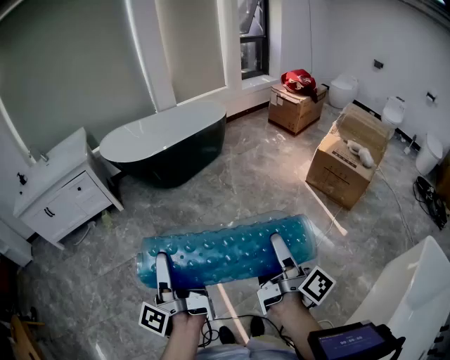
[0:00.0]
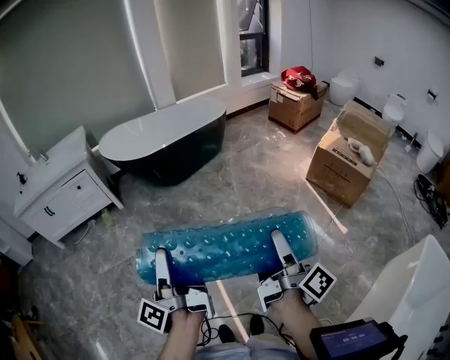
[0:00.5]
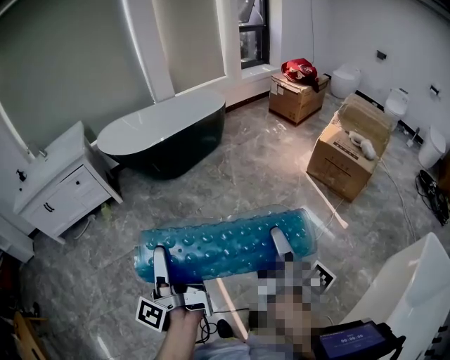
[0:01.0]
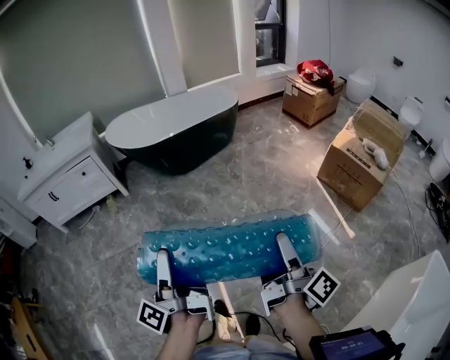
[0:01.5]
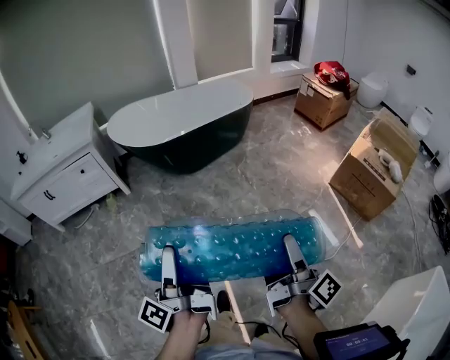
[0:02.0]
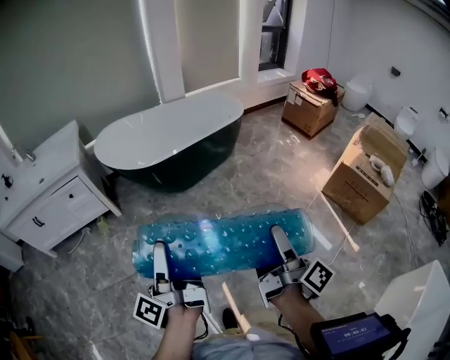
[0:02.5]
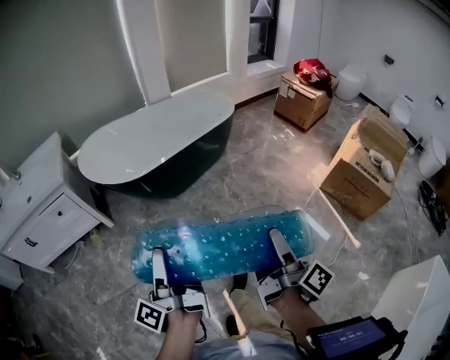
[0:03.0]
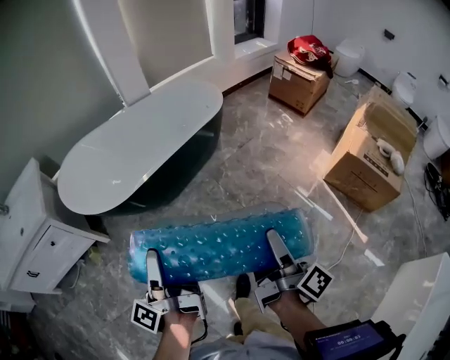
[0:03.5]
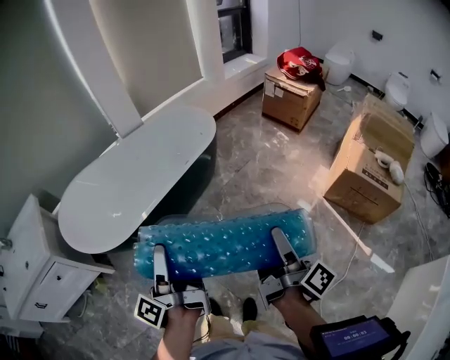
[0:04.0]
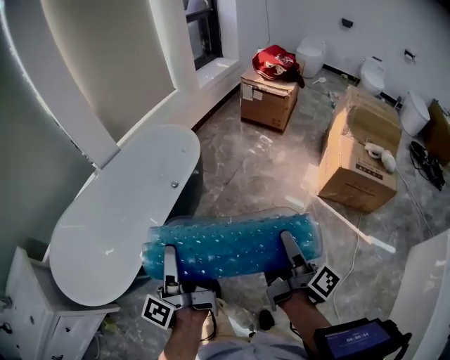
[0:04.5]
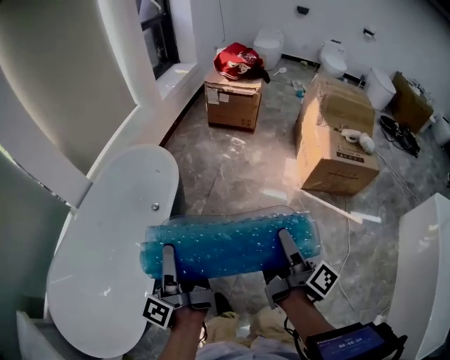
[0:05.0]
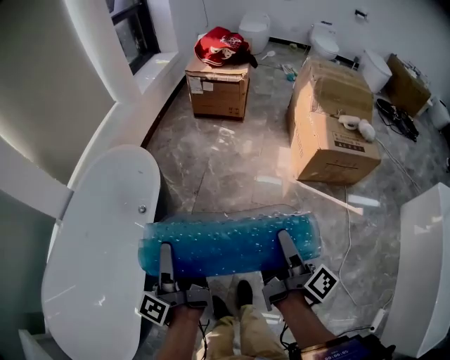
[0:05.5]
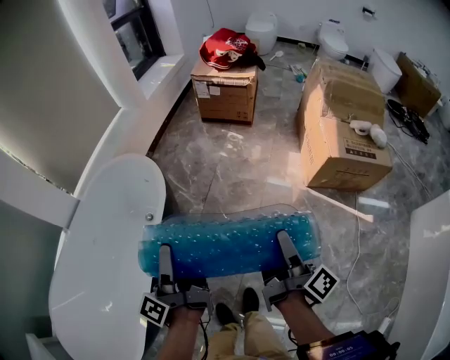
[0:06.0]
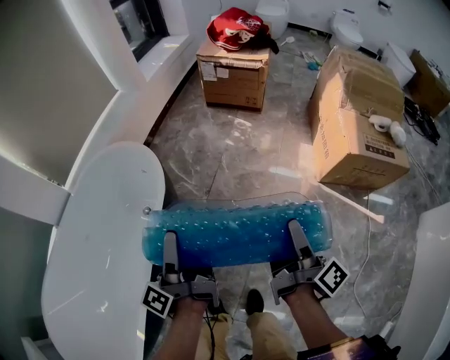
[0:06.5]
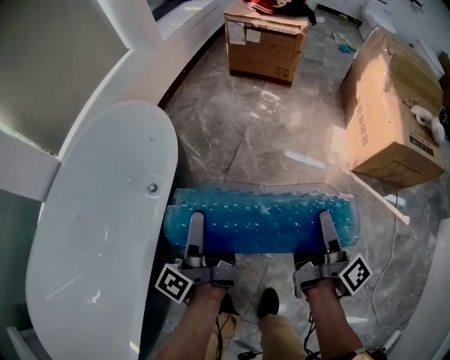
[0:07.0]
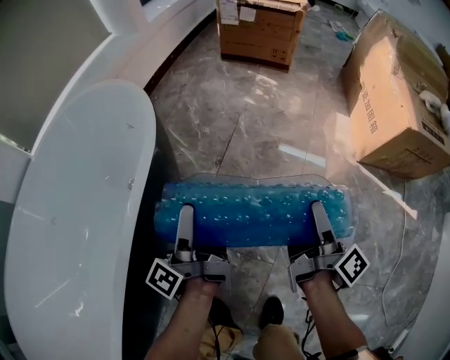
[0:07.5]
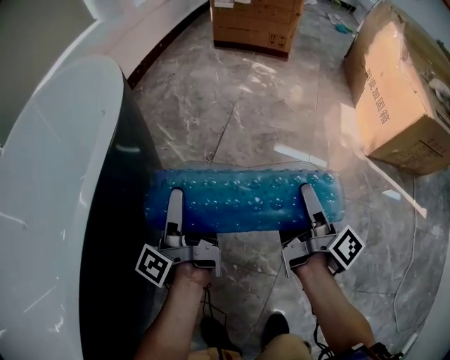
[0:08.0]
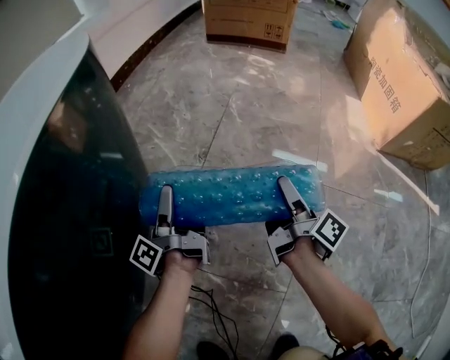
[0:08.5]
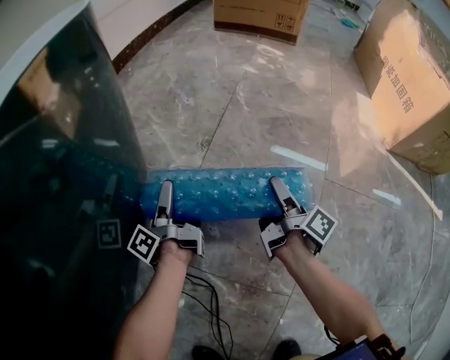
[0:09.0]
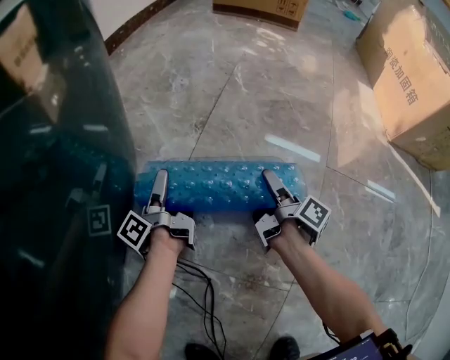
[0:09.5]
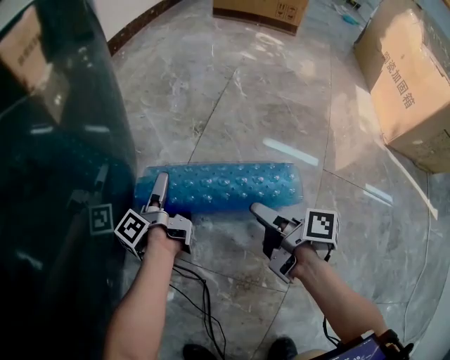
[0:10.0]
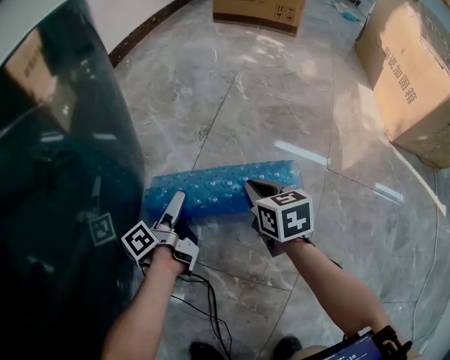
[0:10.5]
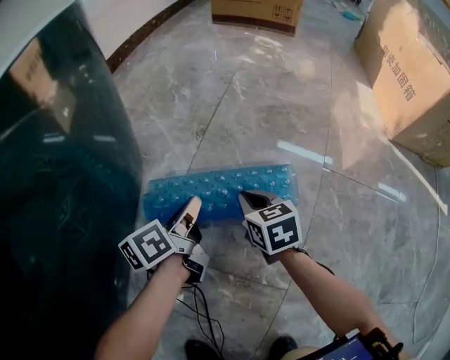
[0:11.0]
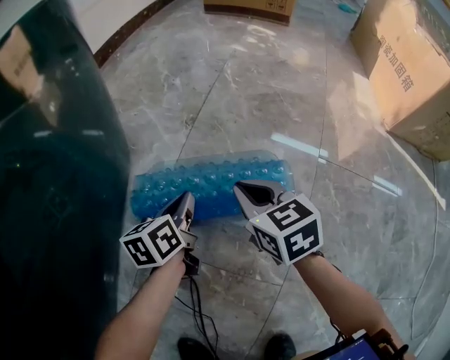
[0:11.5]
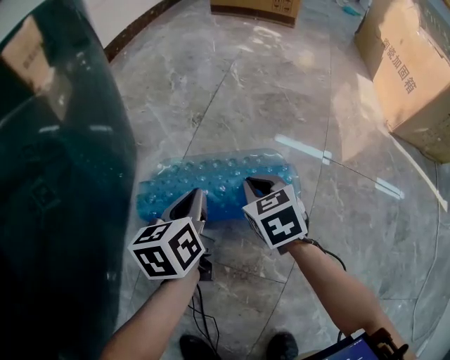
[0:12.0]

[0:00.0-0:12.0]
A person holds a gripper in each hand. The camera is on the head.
0:00.0 to 0:02.0: Both grippers move forward, about 20 cm.
0:02.0 to 0:04.0: Both grippers are carried forward, roughly 50 cm.
0:04.0 to 0:06.0: The left gripper shifts by approximately 40 cm, and swivels approximately 30 degrees. The right gripper moves roughly 30 cm, and swivels about 30 degrees.
0:06.0 to 0:08.0: Both grippers move downward and forward, about 60 cm.
0:08.0 to 0:10.0: Both grippers travel together downward, about 30 cm. The left gripper changes its angle by about 20 degrees. Meanwhile the right gripper turns by about 40 degrees.
0:10.0 to 0:12.0: The right gripper rotates around the line of its fingers by about 70 degrees, counterclockwise from behind, and closes its fingers. Meanwhile the left gripper shifts some 15 cm to the right, backward and upward, twists about 60 degrees clockwise, seen from behind, and closes its fingers.

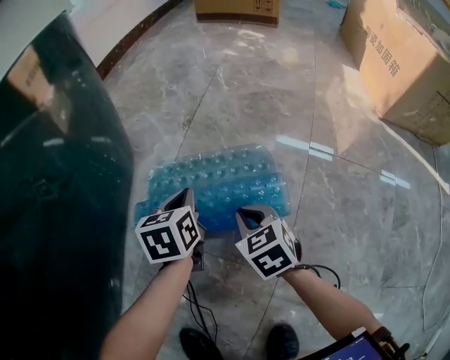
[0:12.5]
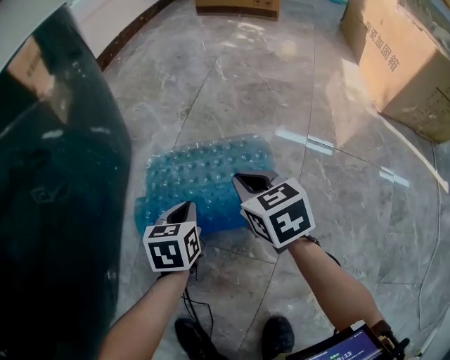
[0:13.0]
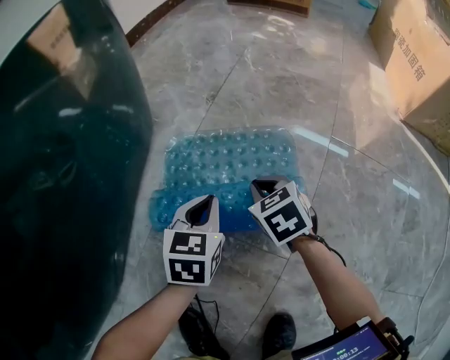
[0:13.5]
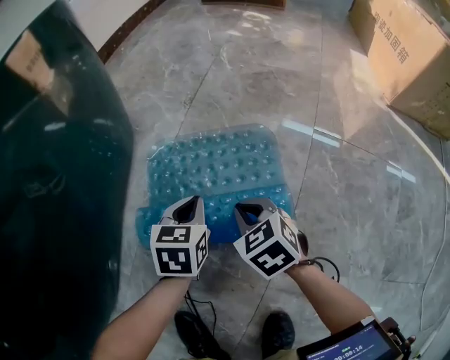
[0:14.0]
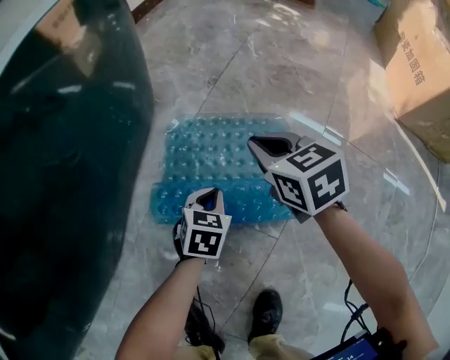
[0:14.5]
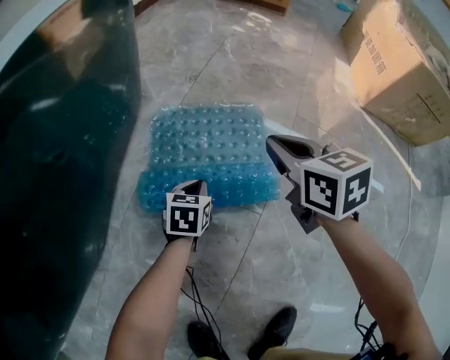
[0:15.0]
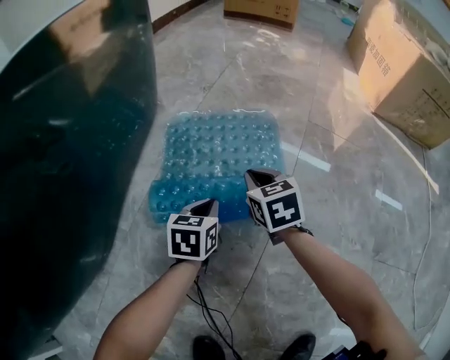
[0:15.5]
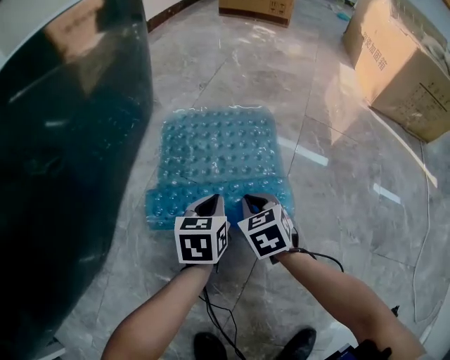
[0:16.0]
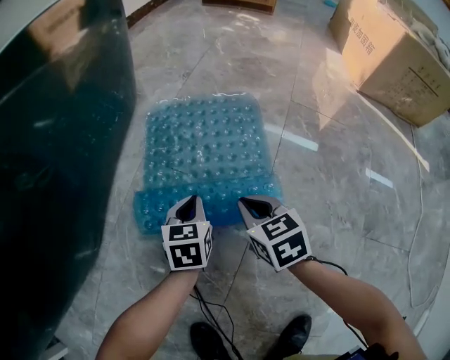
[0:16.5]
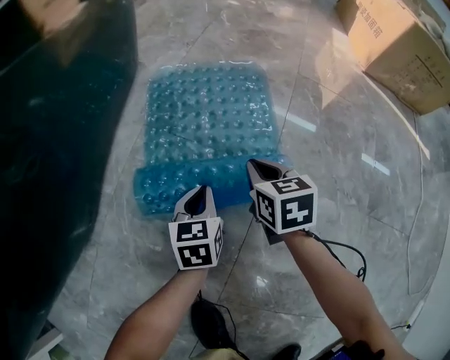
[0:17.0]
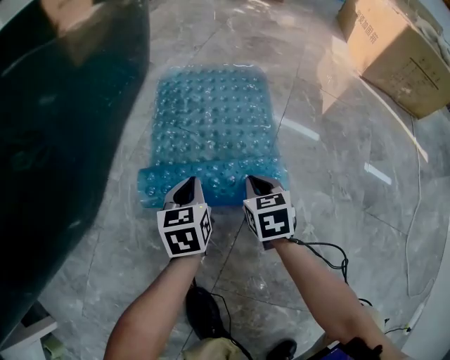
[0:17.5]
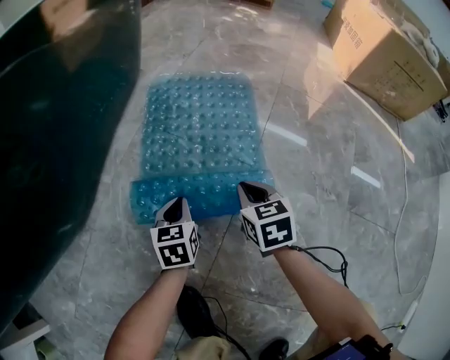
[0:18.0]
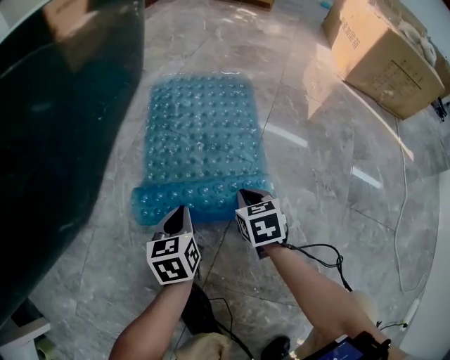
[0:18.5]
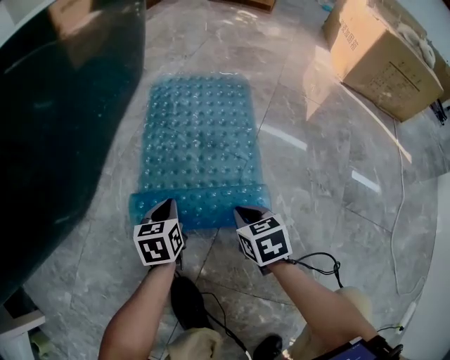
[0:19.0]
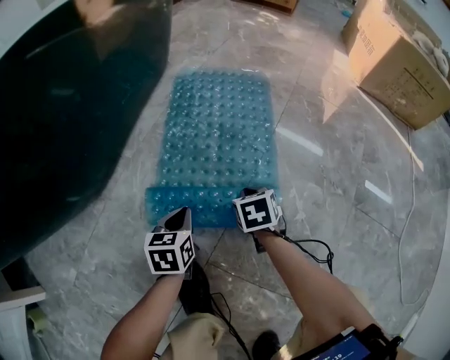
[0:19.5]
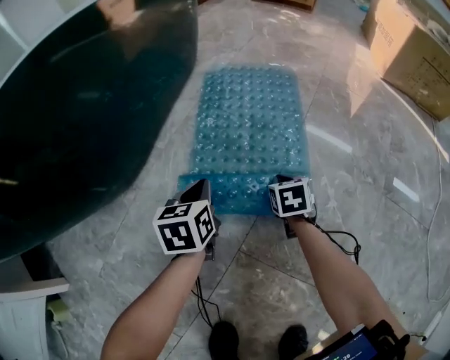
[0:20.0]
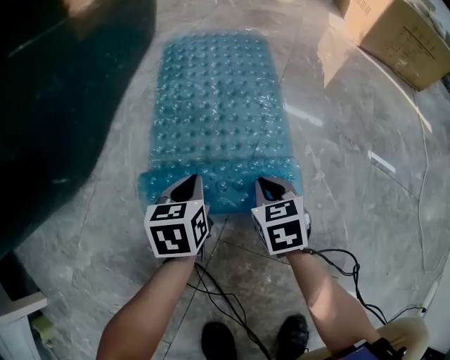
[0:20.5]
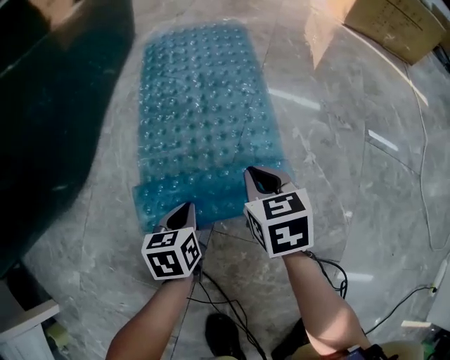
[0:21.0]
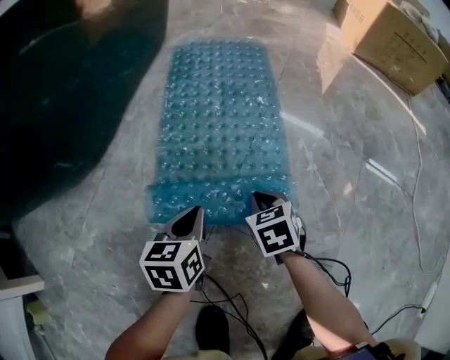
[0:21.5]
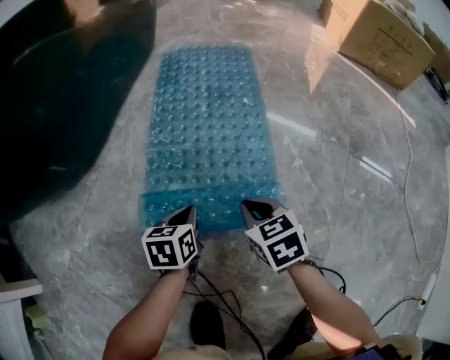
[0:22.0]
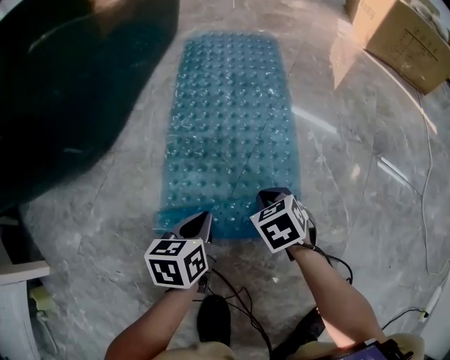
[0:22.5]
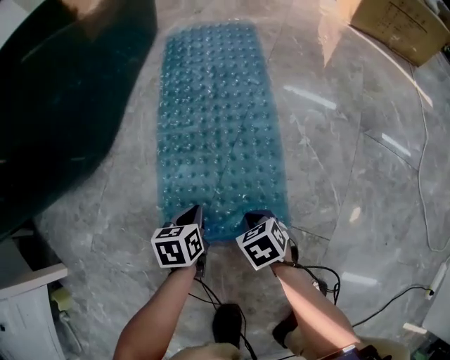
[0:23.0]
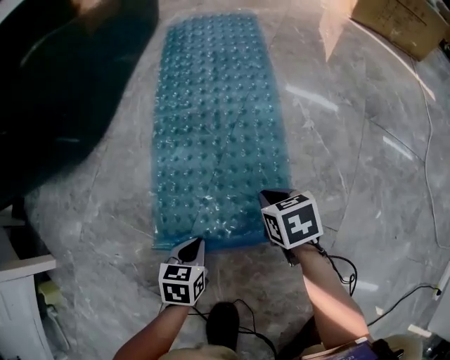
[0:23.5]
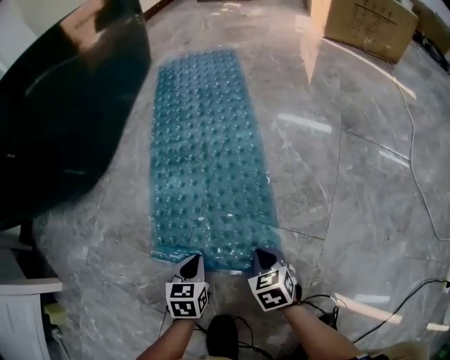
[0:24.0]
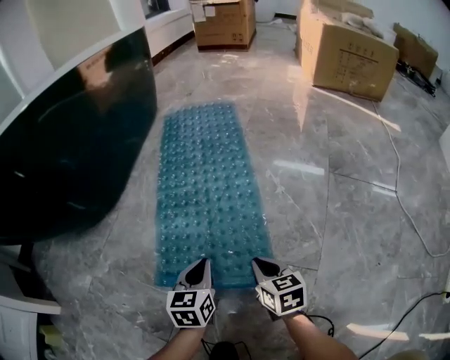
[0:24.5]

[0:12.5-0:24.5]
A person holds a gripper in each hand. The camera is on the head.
0:12.5 to 0:14.5: The left gripper heads backward, covering about 10 cm, and rotates about 20 degrees. Meanwhile the right gripper swings up and down, some 15 cm each way, with 2 reversals.
0:14.5 to 0:16.5: The right gripper shifts about 25 cm backward; the left gripper shifts approximately 15 cm backward.
0:16.5 to 0:18.5: The right gripper shifts some 10 cm backward, while the left gripper shifts approximately 15 cm backward.
0:18.5 to 0:20.5: The left gripper travels backward by roughly 5 cm, and goes upward and returns, roughly 5 cm each way. Meanwhile the right gripper is displaced backward by approximately 10 cm.
0:20.5 to 0:22.5: The right gripper shifts roughly 10 cm backward, while the left gripper goes some 15 cm backward.
0:22.5 to 0:24.5: The right gripper goes roughly 15 cm backward, and swivels some 40 degrees. The left gripper heads backward, covering approximately 10 cm.

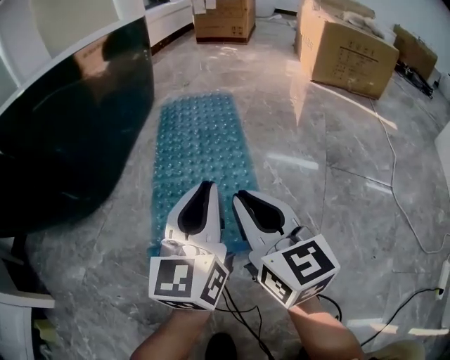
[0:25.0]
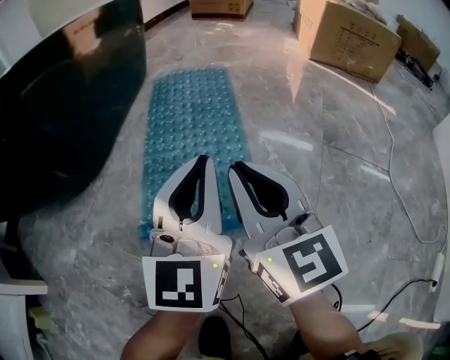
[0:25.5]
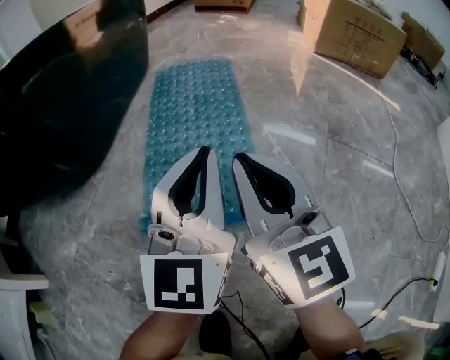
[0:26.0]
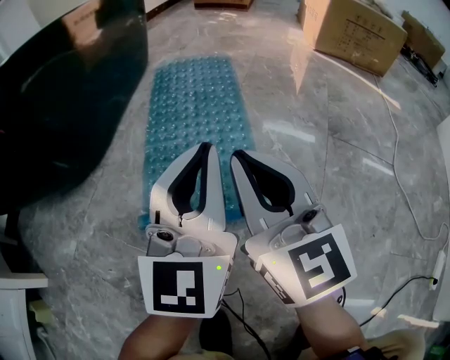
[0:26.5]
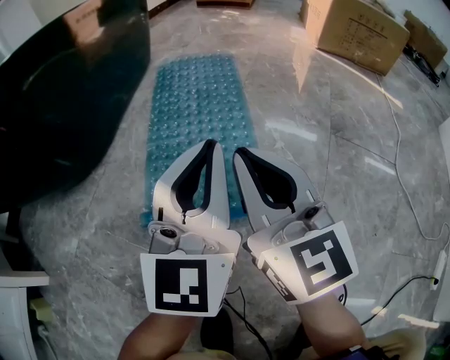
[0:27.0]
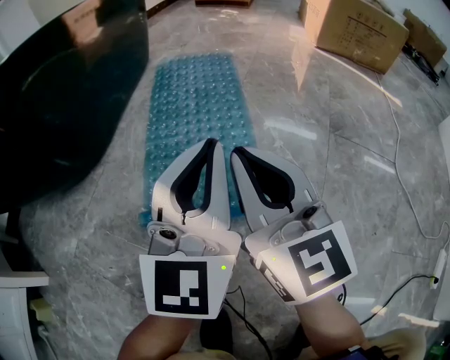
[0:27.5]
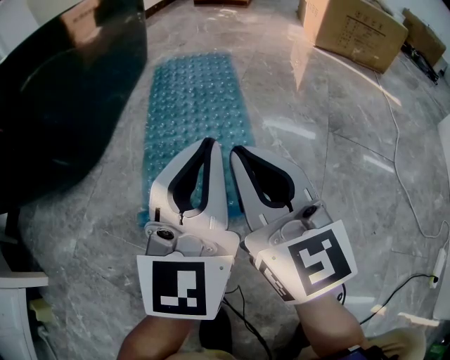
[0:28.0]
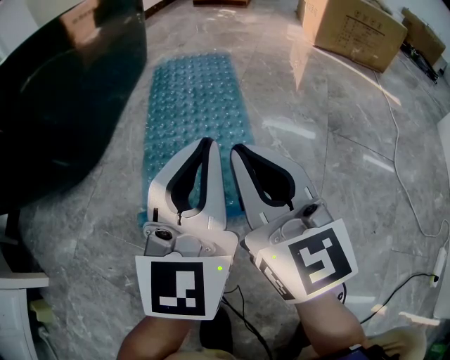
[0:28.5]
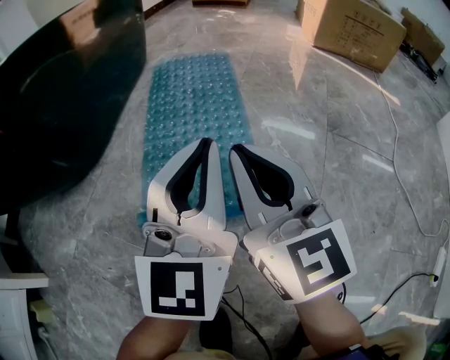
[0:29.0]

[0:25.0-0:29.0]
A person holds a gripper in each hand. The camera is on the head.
0:25.0 to 0:27.0: The grippers stay close to where they were, moving slightly.
0:27.0 to 0:29.0: Both grippers stay about where they are.
